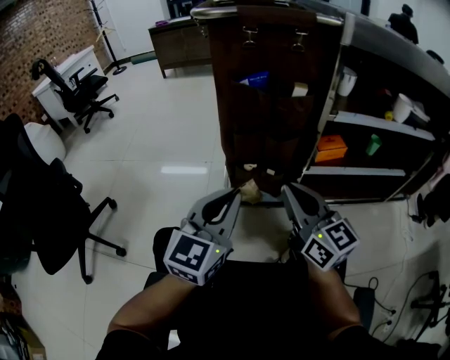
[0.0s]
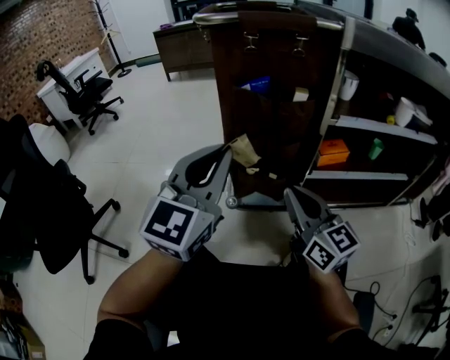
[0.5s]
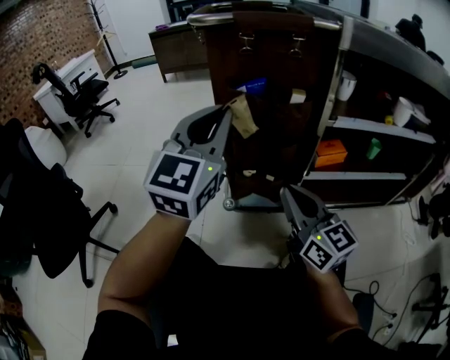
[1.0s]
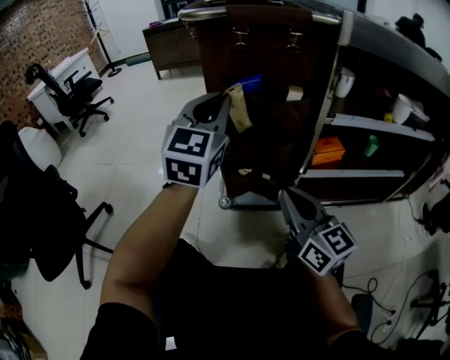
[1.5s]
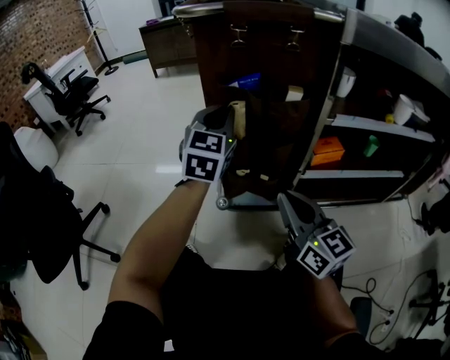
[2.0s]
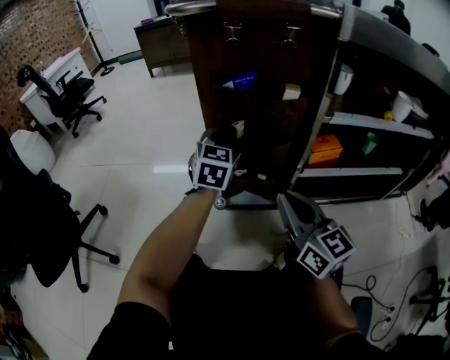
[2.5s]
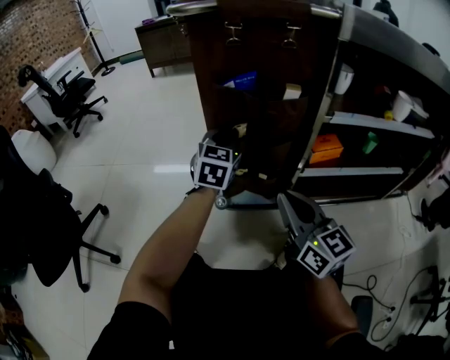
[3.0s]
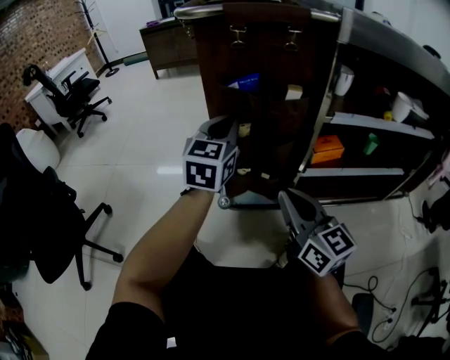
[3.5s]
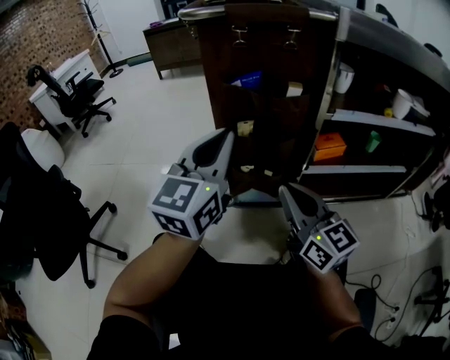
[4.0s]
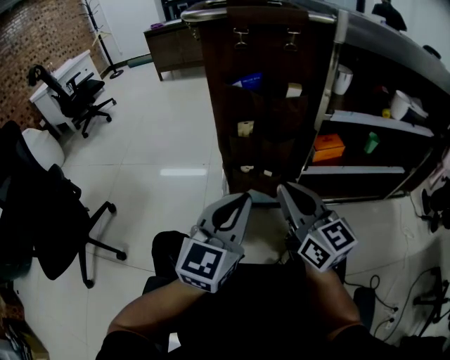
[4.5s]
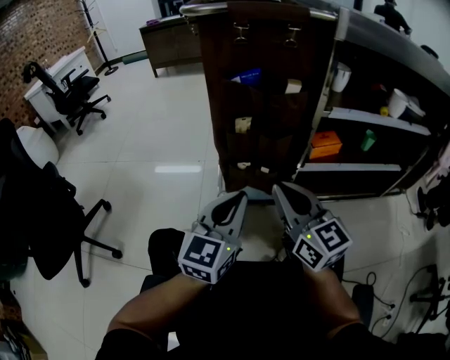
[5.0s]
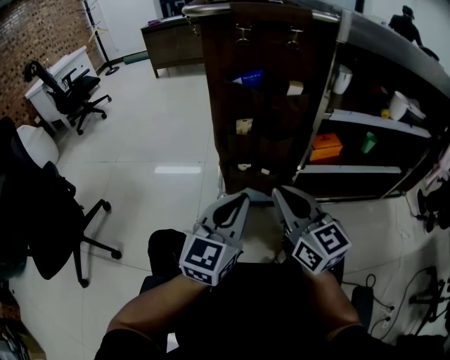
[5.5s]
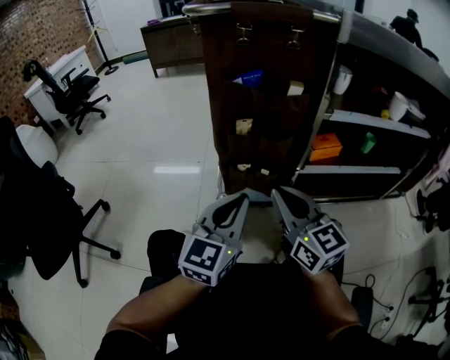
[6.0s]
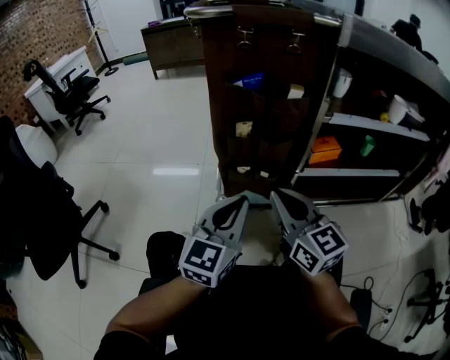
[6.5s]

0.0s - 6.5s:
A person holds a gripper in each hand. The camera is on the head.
0.0s - 2.0s: The left gripper moves forward, about 25 cm.
2.0s - 4.5s: The left gripper travels backward by about 25 cm.
4.5s - 6.5s: The grippers move only a little.

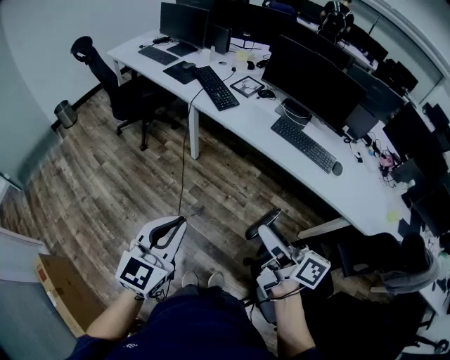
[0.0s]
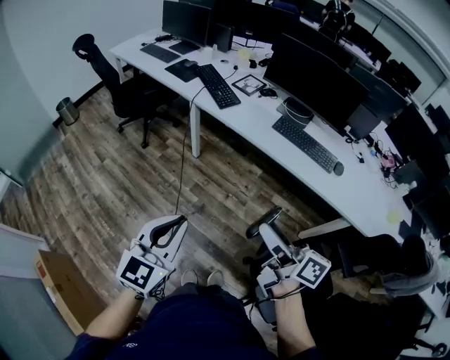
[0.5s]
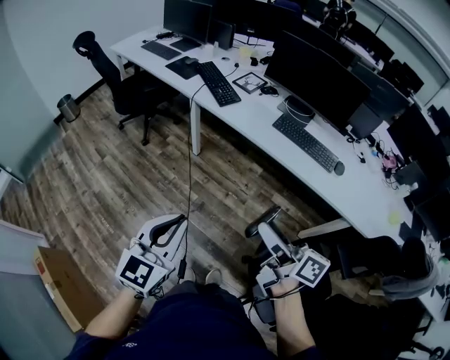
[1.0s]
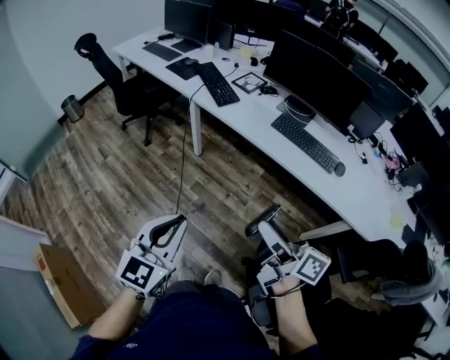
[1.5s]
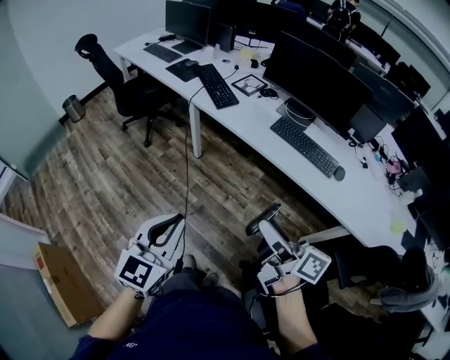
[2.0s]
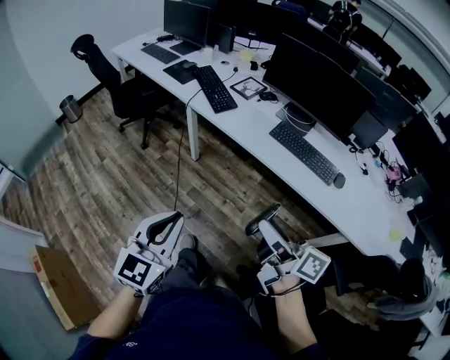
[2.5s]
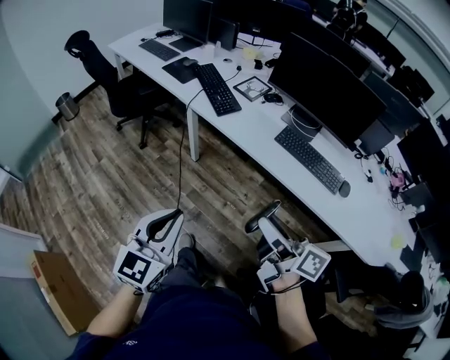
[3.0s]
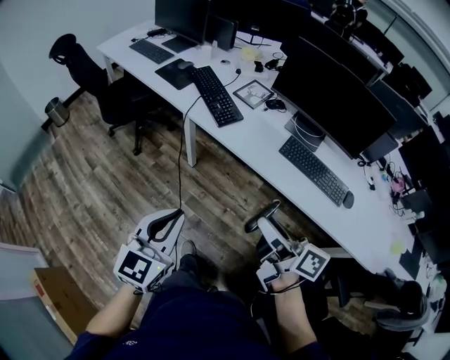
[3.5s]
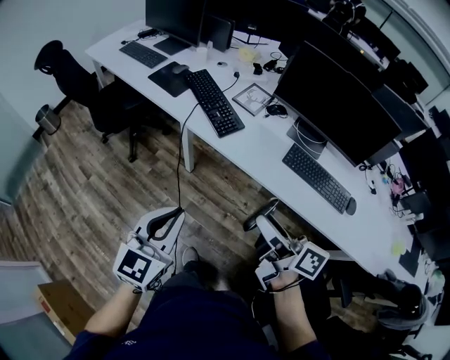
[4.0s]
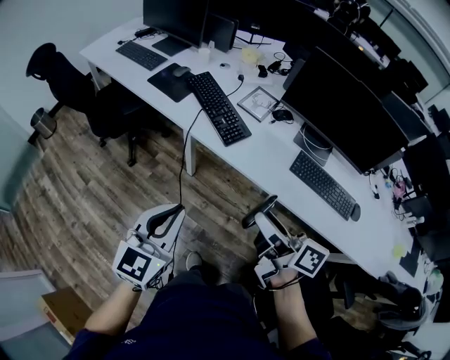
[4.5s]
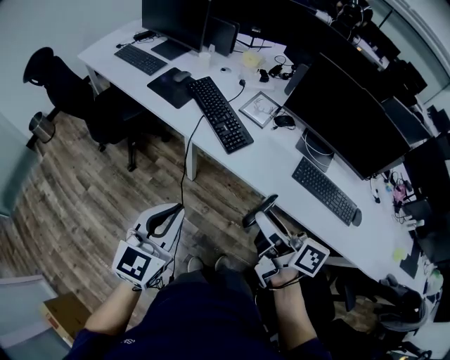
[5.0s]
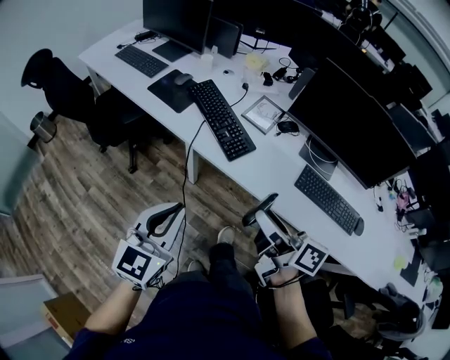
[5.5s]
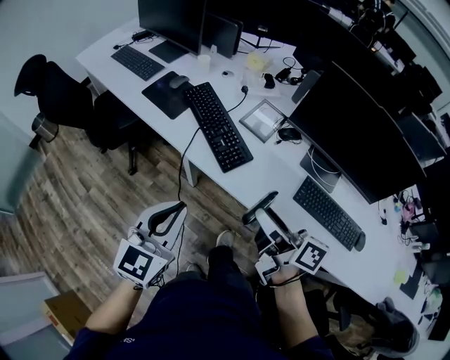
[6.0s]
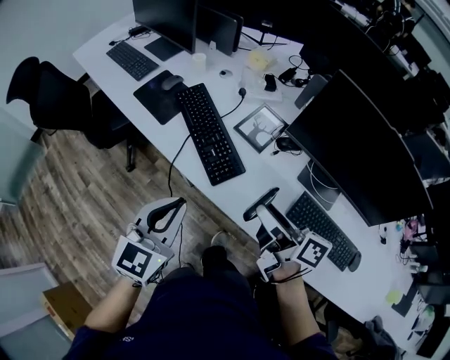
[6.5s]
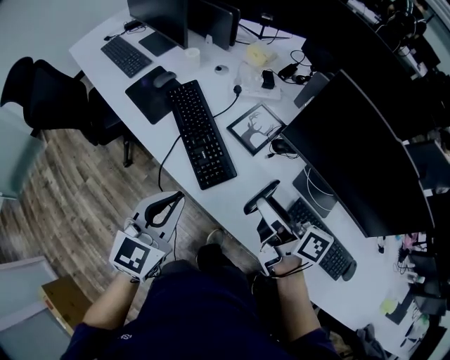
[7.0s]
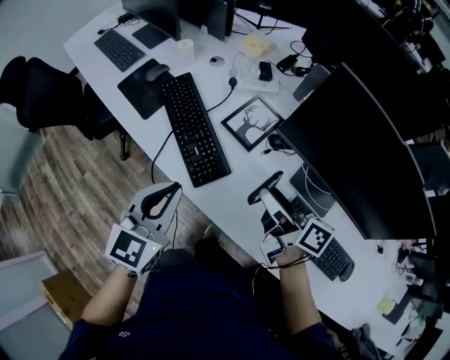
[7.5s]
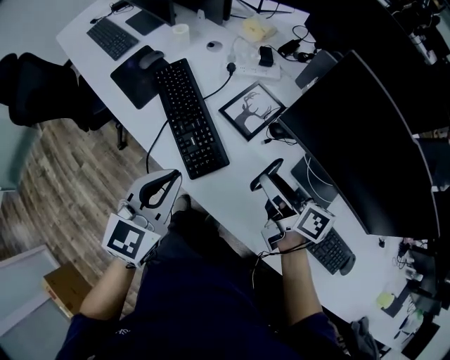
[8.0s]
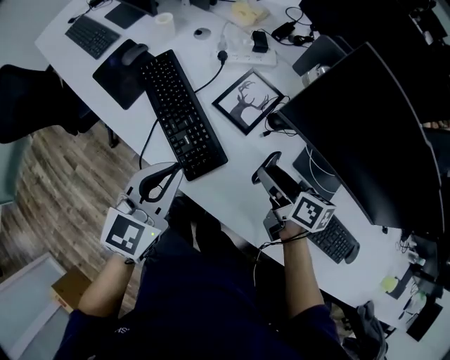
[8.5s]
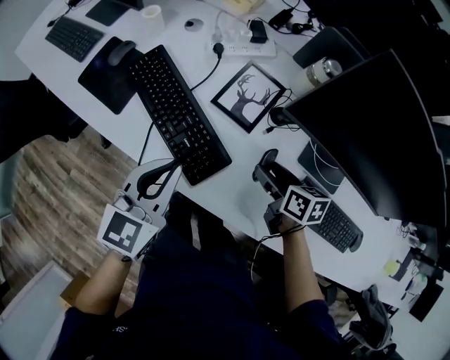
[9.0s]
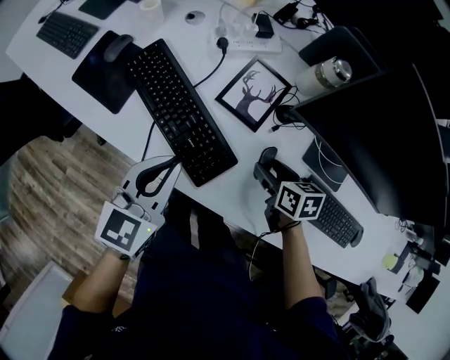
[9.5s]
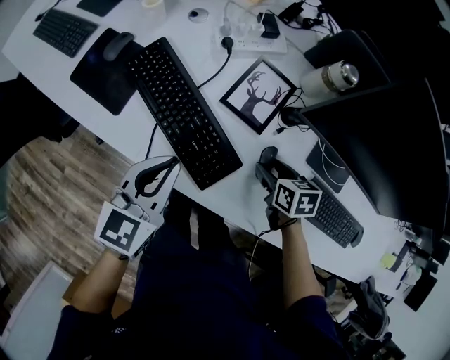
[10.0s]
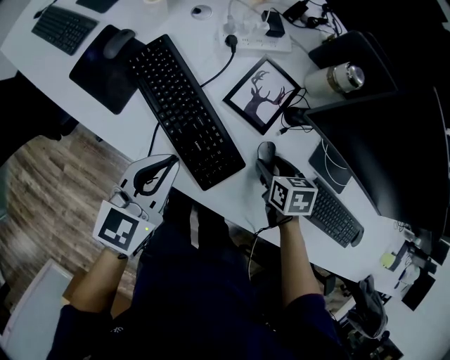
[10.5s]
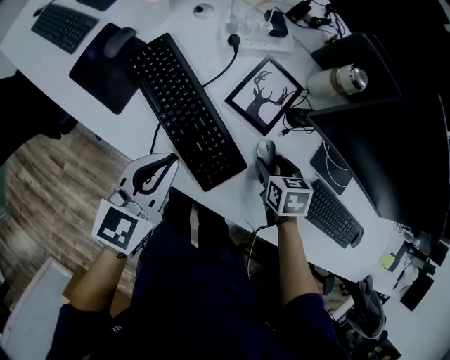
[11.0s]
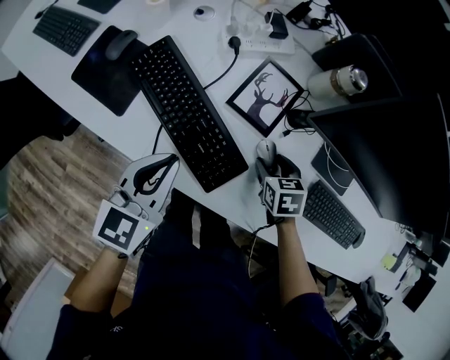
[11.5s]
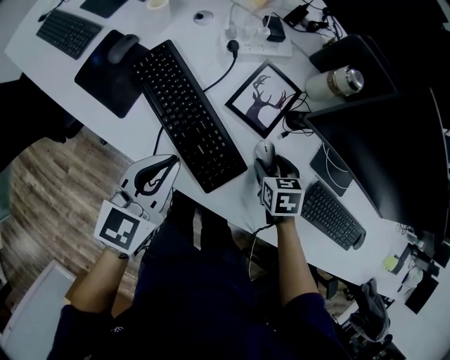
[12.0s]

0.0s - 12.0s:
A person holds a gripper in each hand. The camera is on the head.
0.0s - 2.0s: Both grippers travel together to the right, approximately 5 cm.
2.0s - 4.0s: The grippers both shift forward by approximately 30 cm.
4.0s - 6.0s: The grippers both shift forward by some 20 cm.
6.0s - 8.0s: The right gripper is displaced forward, to the right and downward by approximately 25 cm; the left gripper moves forward and to the right, roughly 20 cm.
8.0s - 10.0s: The right gripper goes roughly 15 cm downward, and tilts its fingers some 40 degrees downward. The left gripper shifts some 15 cm forward, downward and to the left.
10.0s - 12.0s: There are only small adjustments of the grippers.

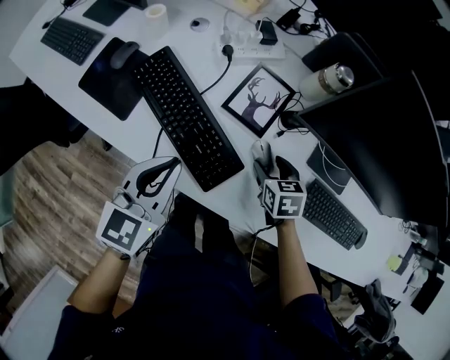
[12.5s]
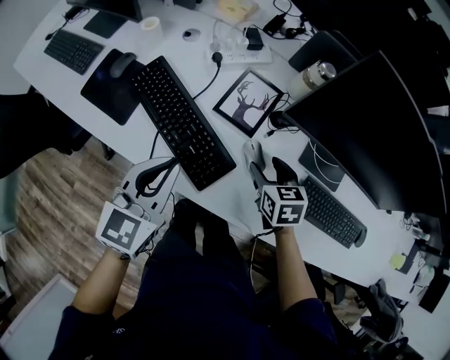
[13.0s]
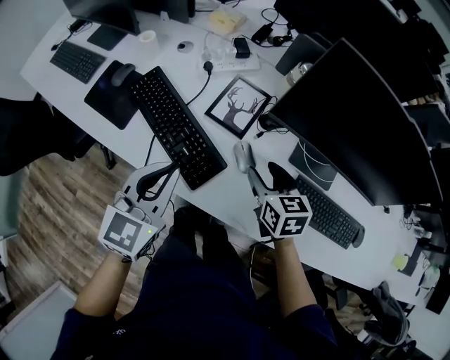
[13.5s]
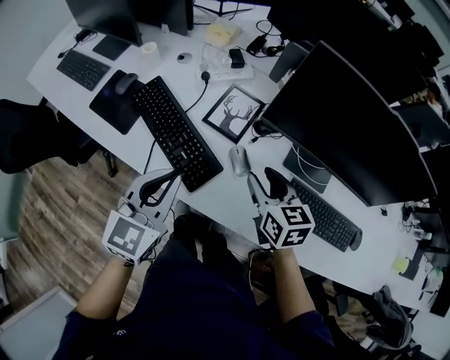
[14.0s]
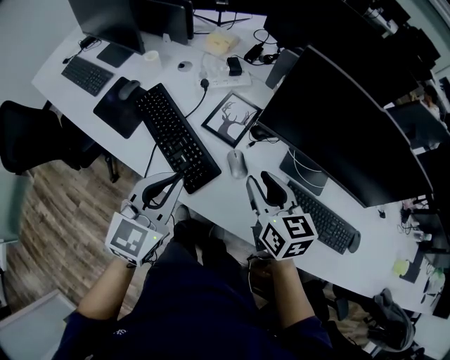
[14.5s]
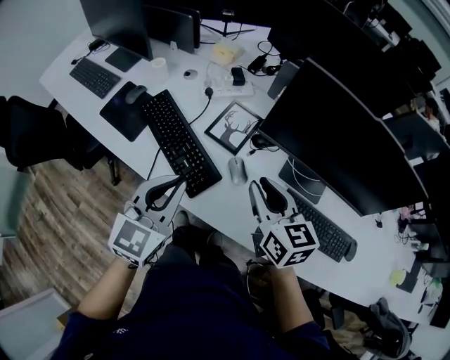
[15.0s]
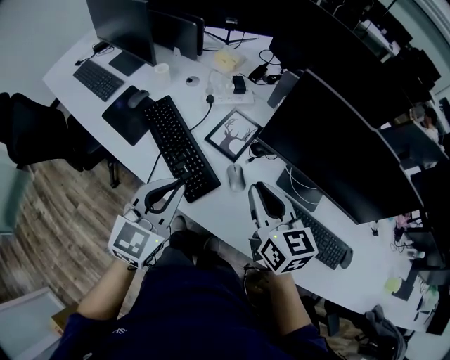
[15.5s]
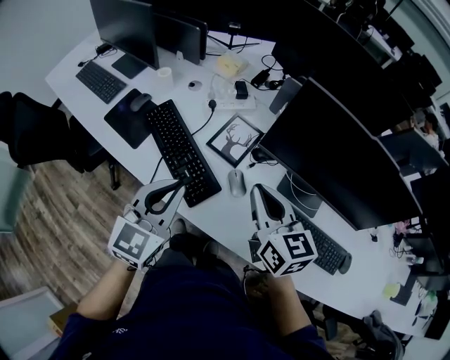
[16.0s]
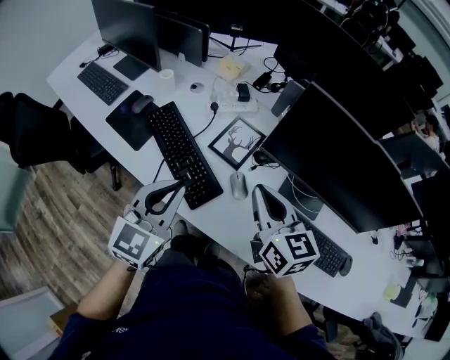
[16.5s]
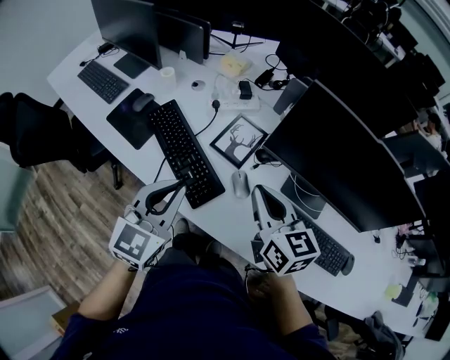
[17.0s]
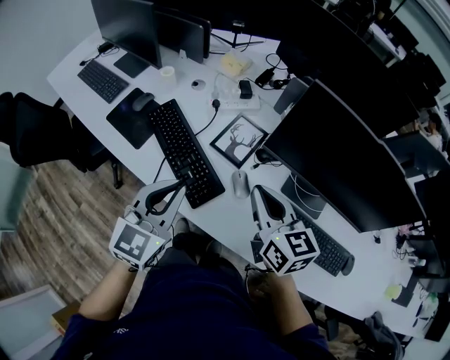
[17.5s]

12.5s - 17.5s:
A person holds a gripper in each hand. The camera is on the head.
12.5s - 15.0s: The left gripper shifts roughly 15 cm upward, to the right and backward. The right gripper is displaced upward by approximately 25 cm, tips its fingers upward by roughly 30 degrees, and closes up.
15.0s - 17.5s: The grippers move only a little.

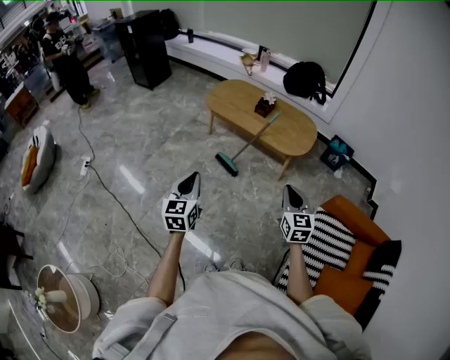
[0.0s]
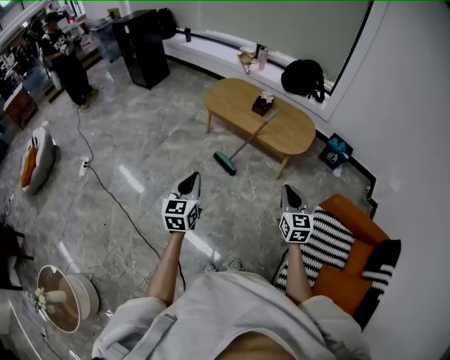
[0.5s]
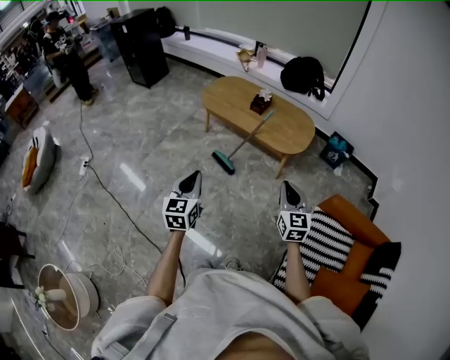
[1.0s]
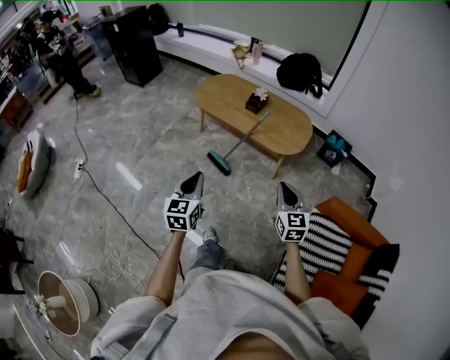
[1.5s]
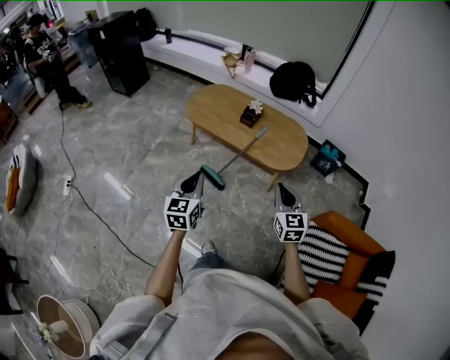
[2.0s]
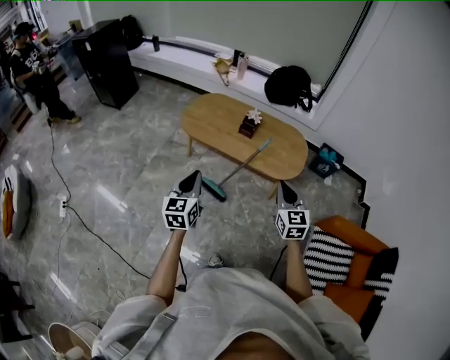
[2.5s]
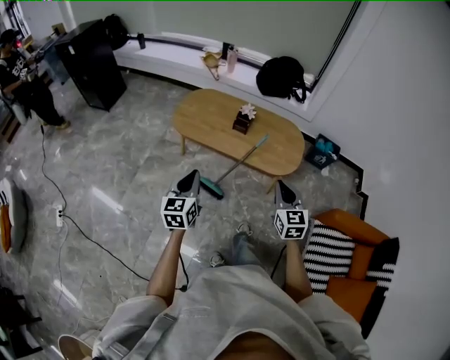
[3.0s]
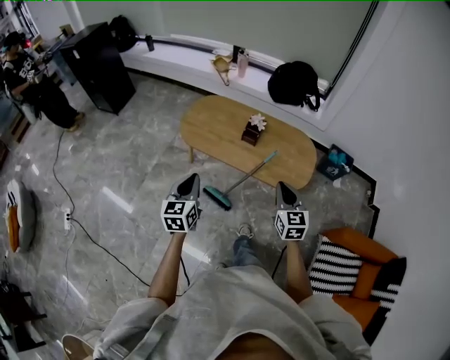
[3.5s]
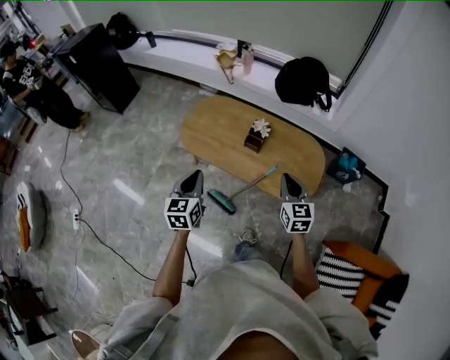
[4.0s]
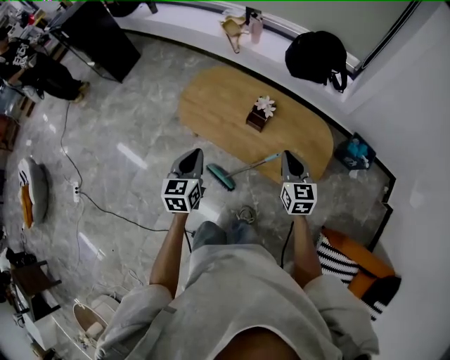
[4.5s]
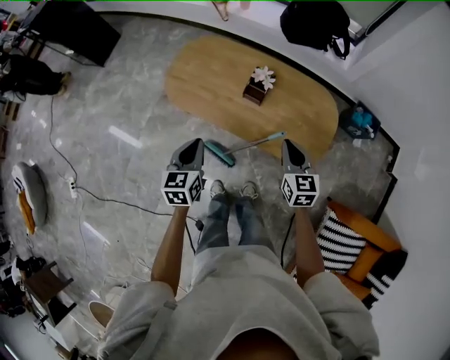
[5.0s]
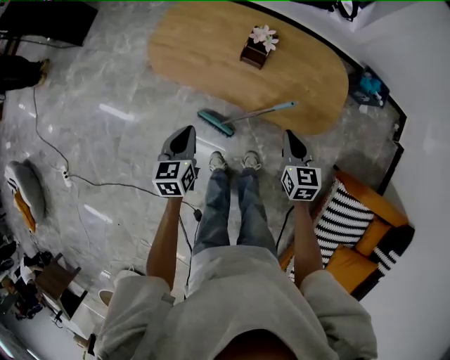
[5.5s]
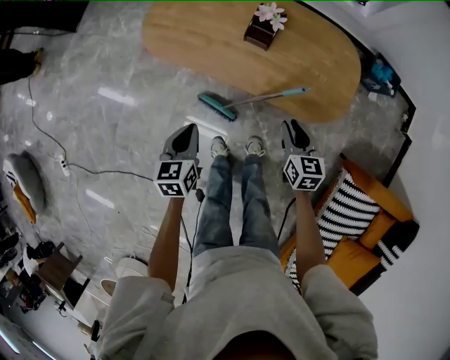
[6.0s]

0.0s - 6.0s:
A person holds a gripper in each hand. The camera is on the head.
0.0s - 2.0s: Both grippers move forward, approximately 20 cm.
2.0s - 4.0s: The two grippers go about 35 cm forward.
4.0s - 6.0s: Both grippers travel together downward, some 25 cm. The right gripper rotates about 20 degrees, and opens. The left gripper changes its angle by about 20 degrees.
